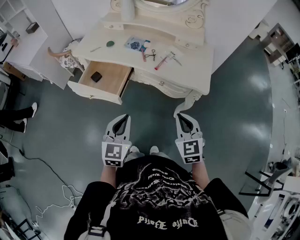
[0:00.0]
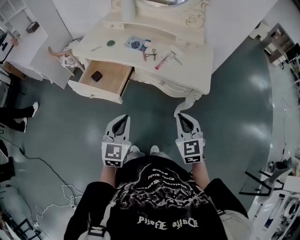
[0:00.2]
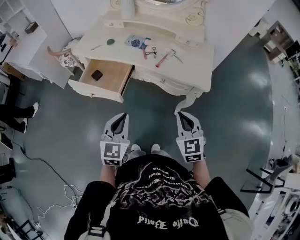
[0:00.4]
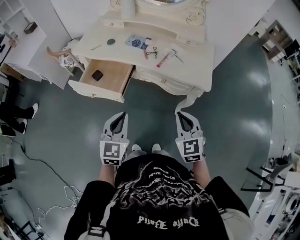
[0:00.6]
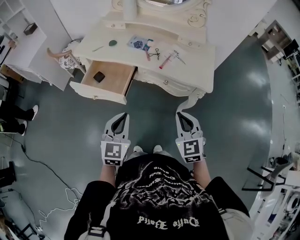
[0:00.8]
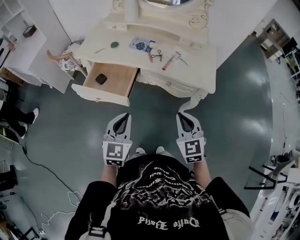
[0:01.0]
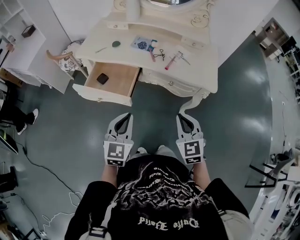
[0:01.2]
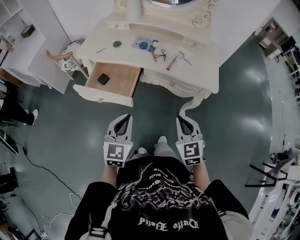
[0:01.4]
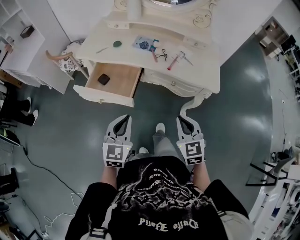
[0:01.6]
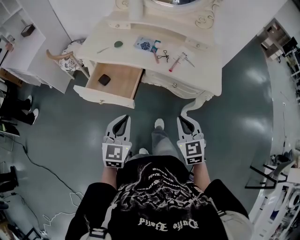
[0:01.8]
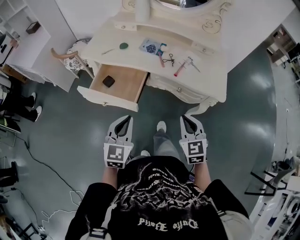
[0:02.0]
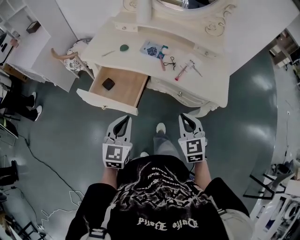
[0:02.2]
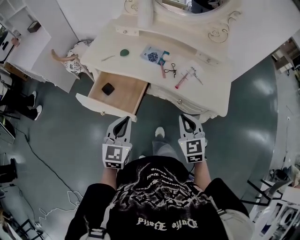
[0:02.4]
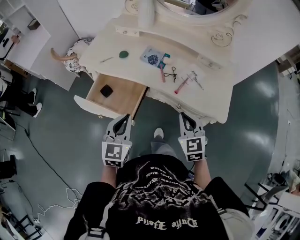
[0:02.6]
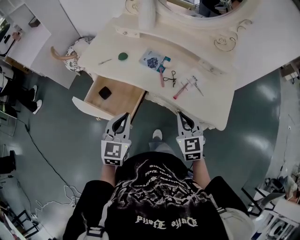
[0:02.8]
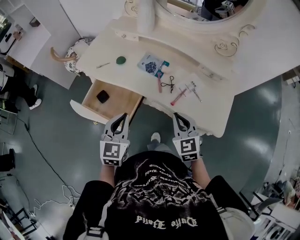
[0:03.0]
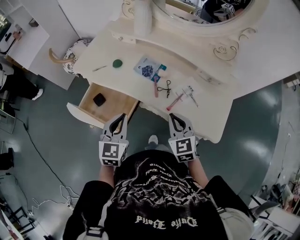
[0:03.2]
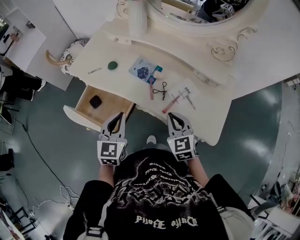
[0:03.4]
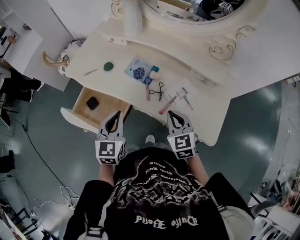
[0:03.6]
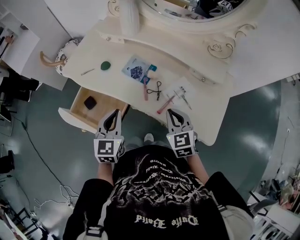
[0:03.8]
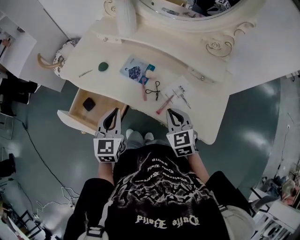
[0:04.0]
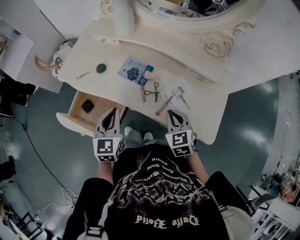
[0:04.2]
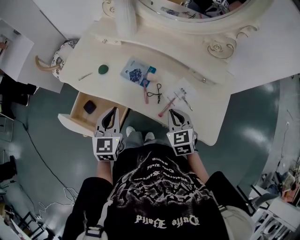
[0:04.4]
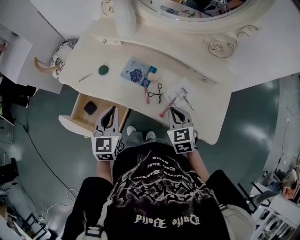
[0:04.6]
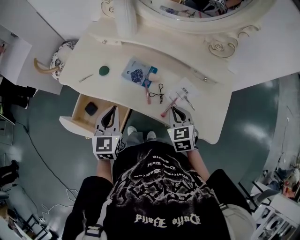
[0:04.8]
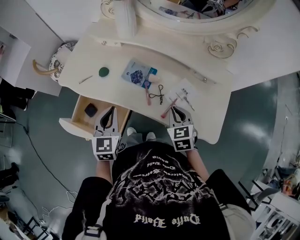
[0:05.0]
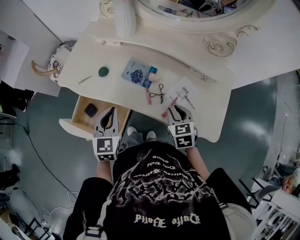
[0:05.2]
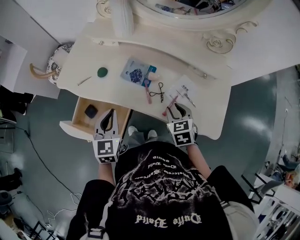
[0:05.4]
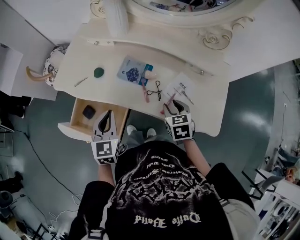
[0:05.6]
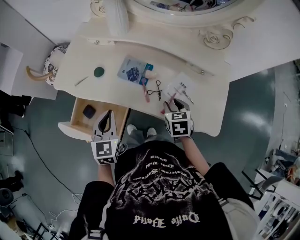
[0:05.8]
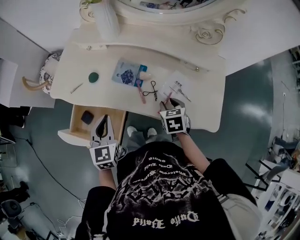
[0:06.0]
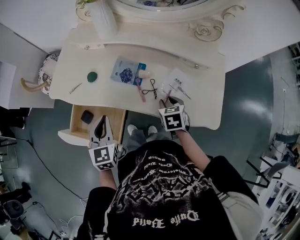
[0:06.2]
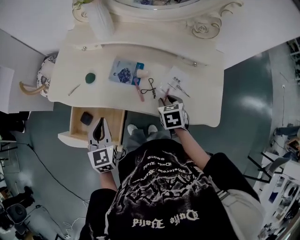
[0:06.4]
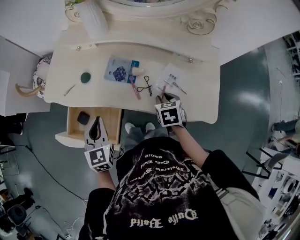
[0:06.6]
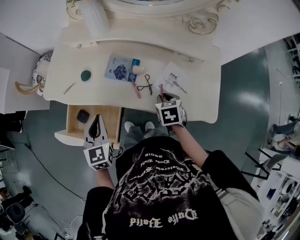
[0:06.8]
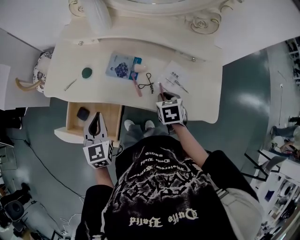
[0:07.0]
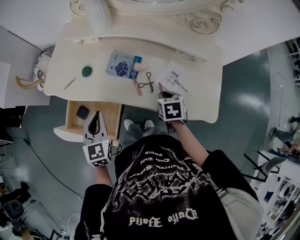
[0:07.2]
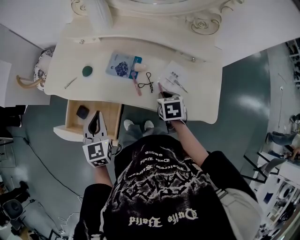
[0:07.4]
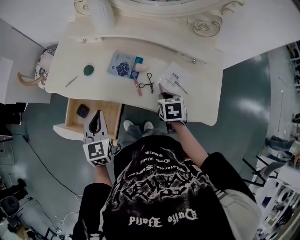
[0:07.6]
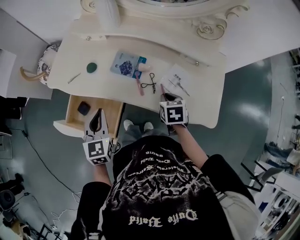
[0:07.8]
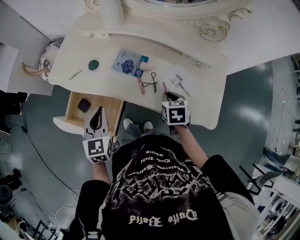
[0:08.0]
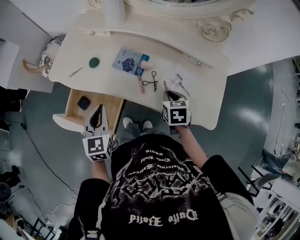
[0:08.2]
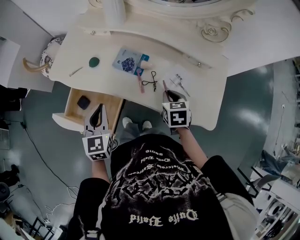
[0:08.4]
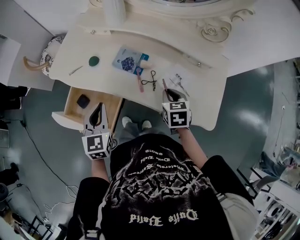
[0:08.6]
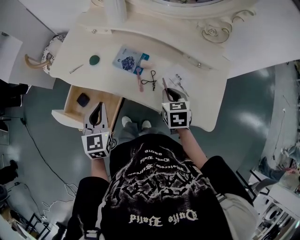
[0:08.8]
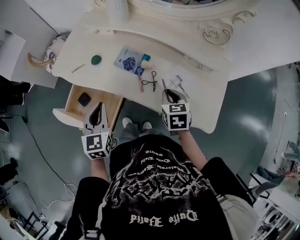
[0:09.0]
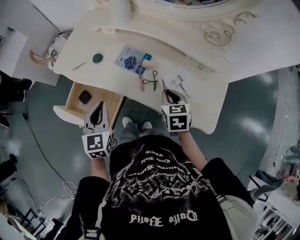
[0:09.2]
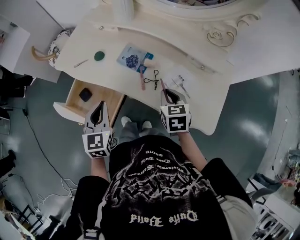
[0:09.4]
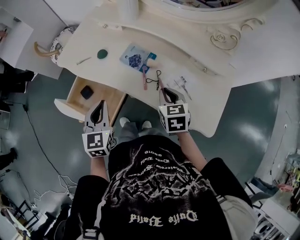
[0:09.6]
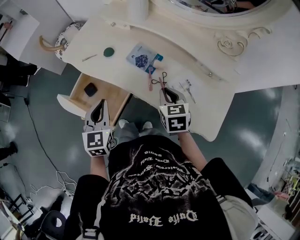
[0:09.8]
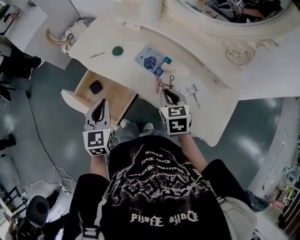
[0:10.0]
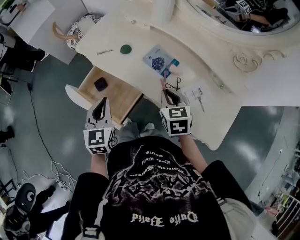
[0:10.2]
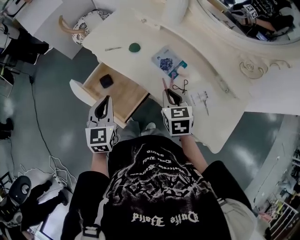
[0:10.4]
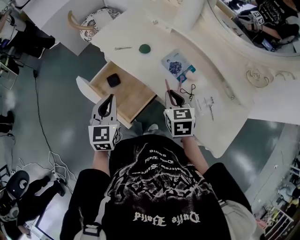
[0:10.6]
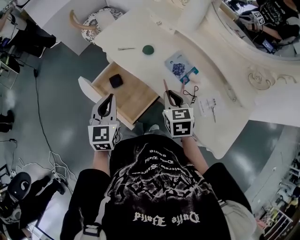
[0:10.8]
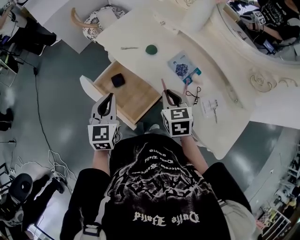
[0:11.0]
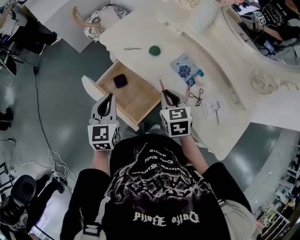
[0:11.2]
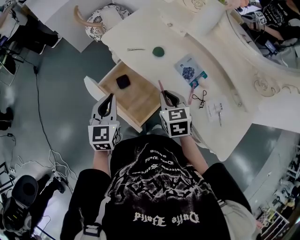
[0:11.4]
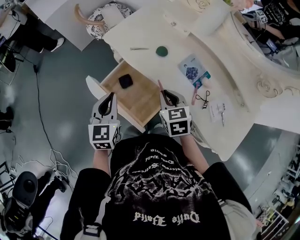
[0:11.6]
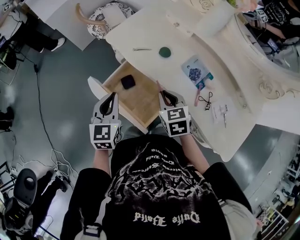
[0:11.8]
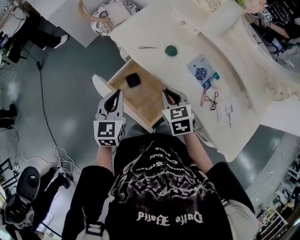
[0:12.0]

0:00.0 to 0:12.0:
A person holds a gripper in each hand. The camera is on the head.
0:00.0 to 0:01.6: The grippers both shift to the left by about 10 cm.
0:01.6 to 0:03.0: Both grippers move forward, approximately 20 cm.
0:03.0 to 0:04.4: The left gripper travels forward by some 10 cm, while the right gripper is displaced forward and to the right by approximately 10 cm.
0:04.4 to 0:06.0: The right gripper ends up some 5 cm from where it was, changes its angle by about 30 degrees, and opens its fingers.
0:06.0 to 0:07.6: The right gripper closes its fingers.
0:07.6 to 0:09.0: The right gripper shifts approximately 5 cm upward.
0:09.0 to 0:10.4: The two grippers go roughly 10 cm to the left. The right gripper rotates some 20 degrees.
0:10.4 to 0:12.0: The left gripper goes about 10 cm to the left and forward; the right gripper travels to the left by roughly 15 cm.

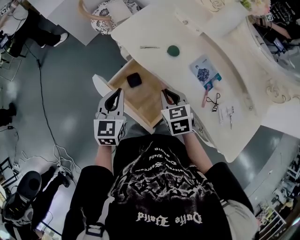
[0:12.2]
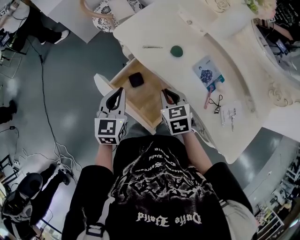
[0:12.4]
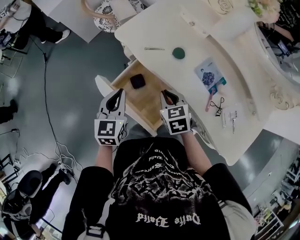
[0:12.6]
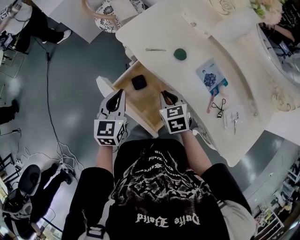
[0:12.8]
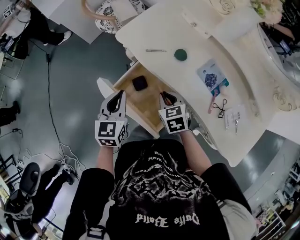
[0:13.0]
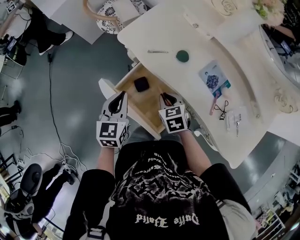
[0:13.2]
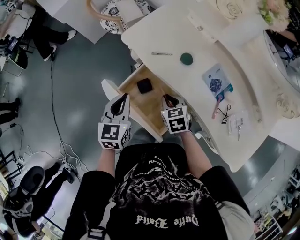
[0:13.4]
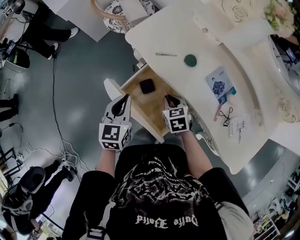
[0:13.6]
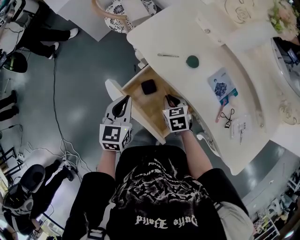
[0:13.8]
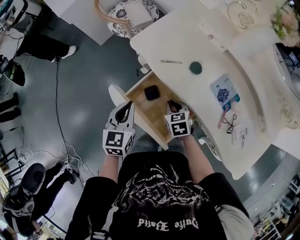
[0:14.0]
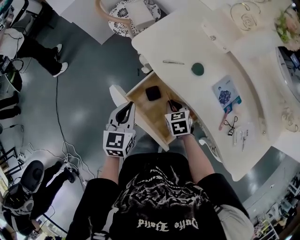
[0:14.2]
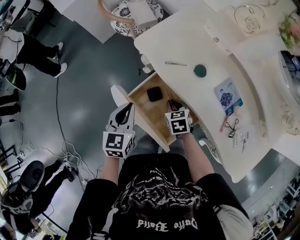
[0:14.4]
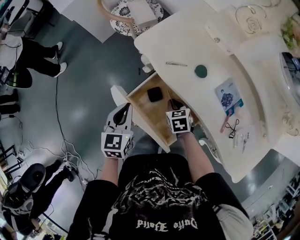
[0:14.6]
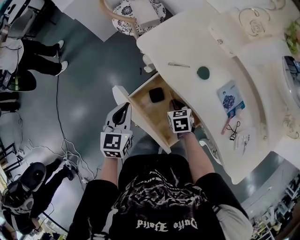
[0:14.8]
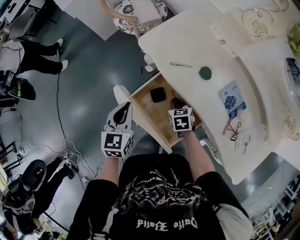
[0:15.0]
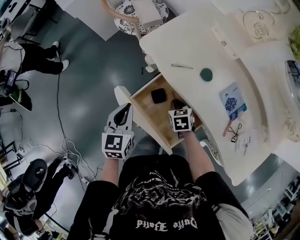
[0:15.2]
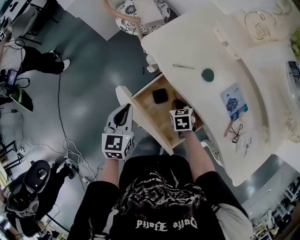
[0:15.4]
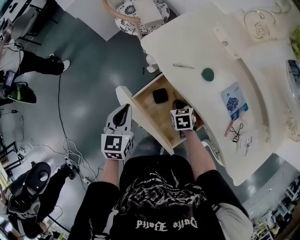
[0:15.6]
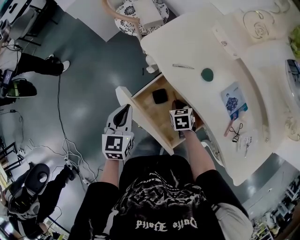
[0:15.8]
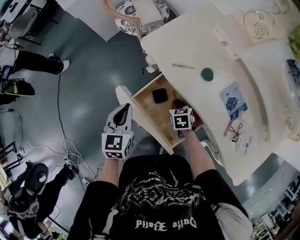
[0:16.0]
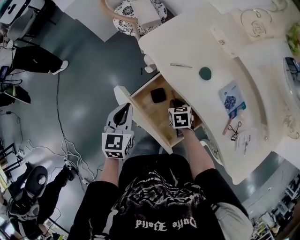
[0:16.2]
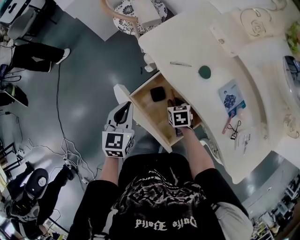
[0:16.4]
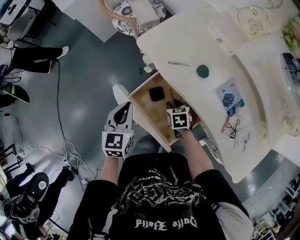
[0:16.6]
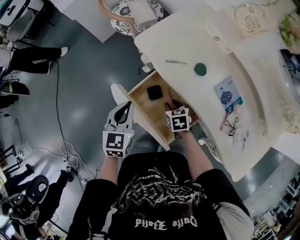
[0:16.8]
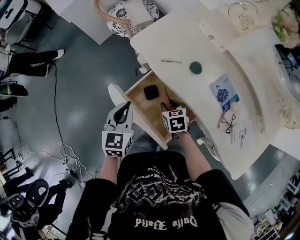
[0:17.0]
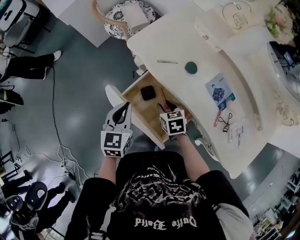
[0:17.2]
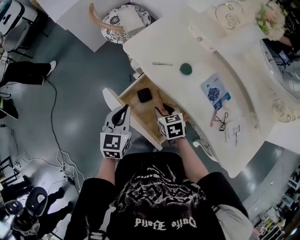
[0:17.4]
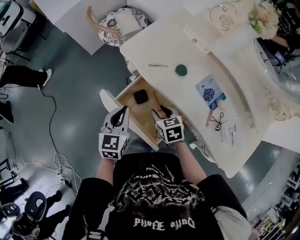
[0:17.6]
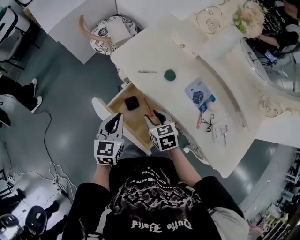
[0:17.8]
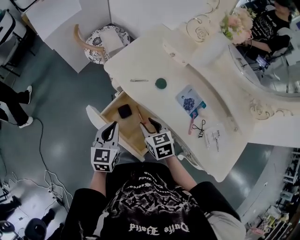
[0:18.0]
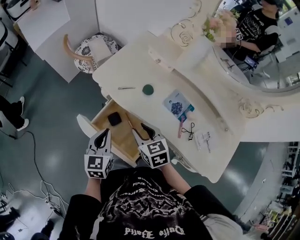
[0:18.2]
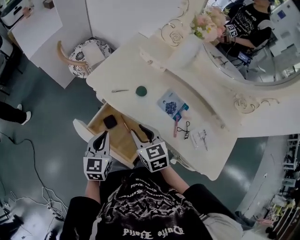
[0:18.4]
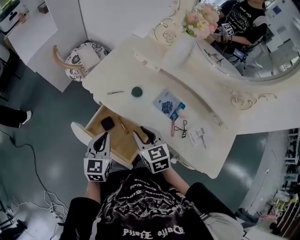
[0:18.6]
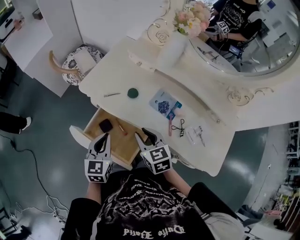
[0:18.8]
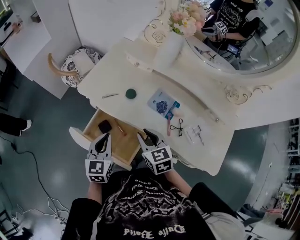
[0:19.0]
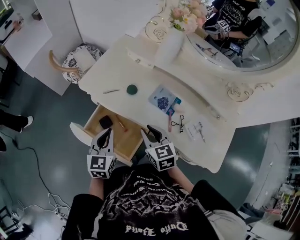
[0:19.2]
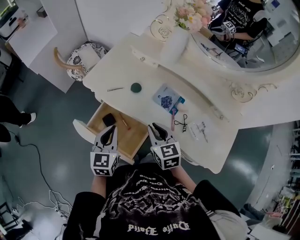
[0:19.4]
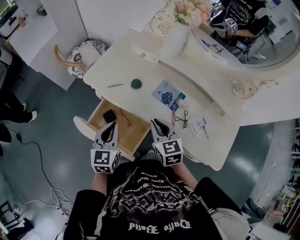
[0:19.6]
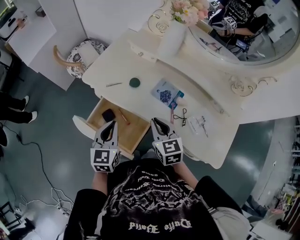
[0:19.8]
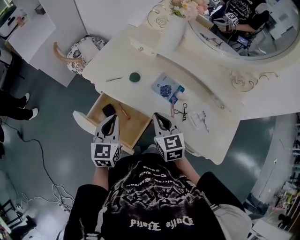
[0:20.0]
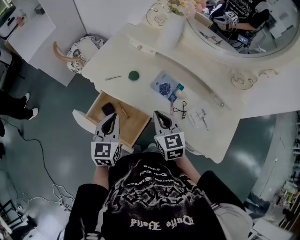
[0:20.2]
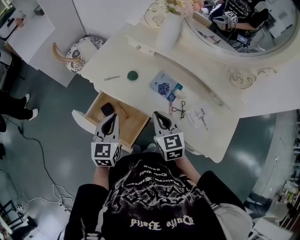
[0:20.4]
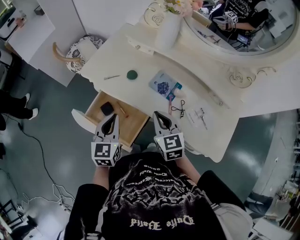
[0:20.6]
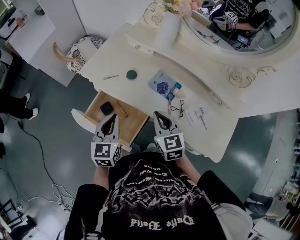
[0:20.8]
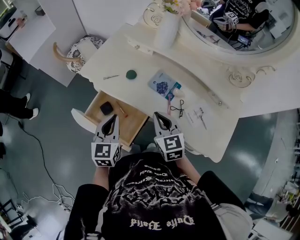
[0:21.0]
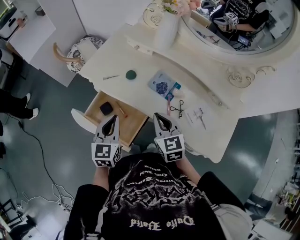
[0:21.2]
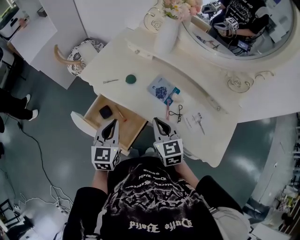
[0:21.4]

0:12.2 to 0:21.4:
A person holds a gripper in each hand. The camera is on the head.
0:12.2 to 0:13.8: The right gripper travels downward by about 10 cm.
0:13.8 to 0:15.2: The right gripper moves downward, approximately 5 cm.
0:15.2 to 0:16.8: The right gripper opens up.
0:16.8 to 0:18.4: The left gripper is displaced to the right by approximately 10 cm, while the right gripper shifts about 20 cm upward, and swivels about 30 degrees.
0:18.4 to 0:19.8: The right gripper heads to the right, covering some 10 cm, and closes, while the left gripper travels to the right by roughly 5 cm.
0:19.8 to 0:21.4: The grippers stay close to where they were, moving slightly.

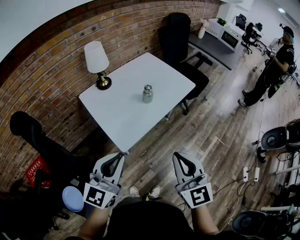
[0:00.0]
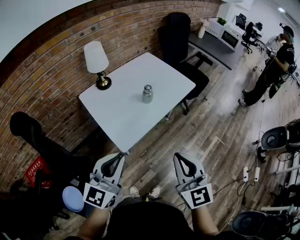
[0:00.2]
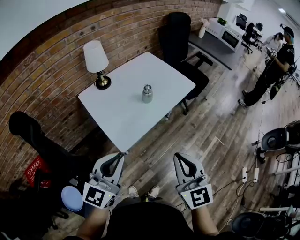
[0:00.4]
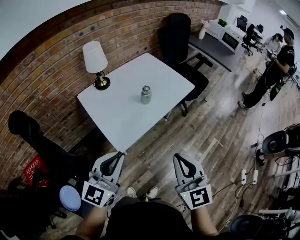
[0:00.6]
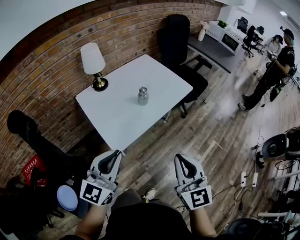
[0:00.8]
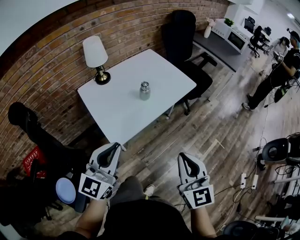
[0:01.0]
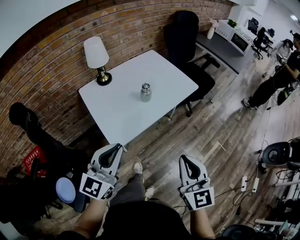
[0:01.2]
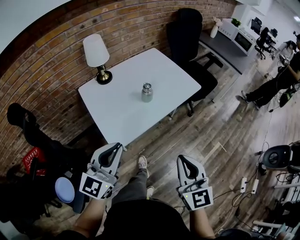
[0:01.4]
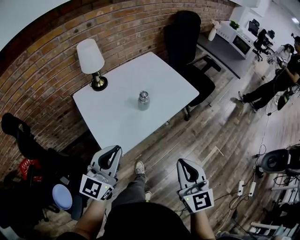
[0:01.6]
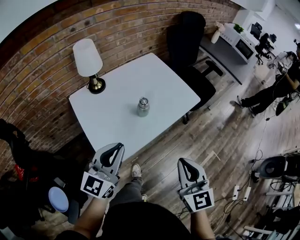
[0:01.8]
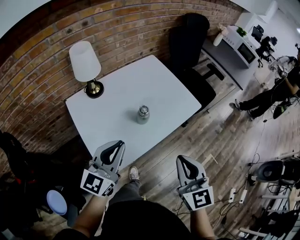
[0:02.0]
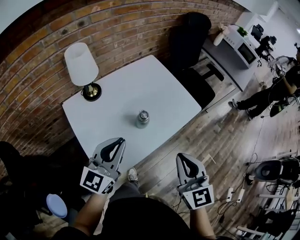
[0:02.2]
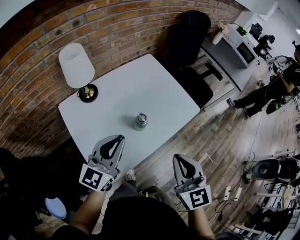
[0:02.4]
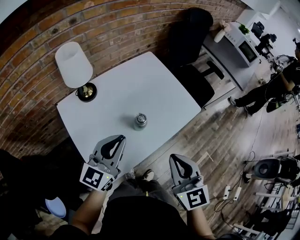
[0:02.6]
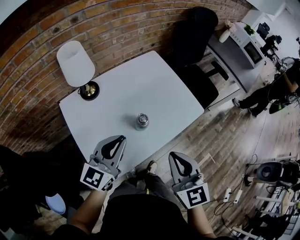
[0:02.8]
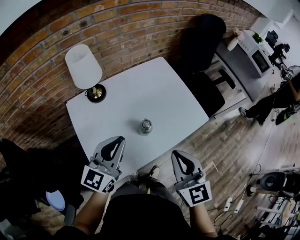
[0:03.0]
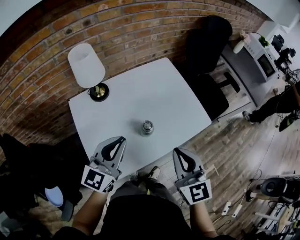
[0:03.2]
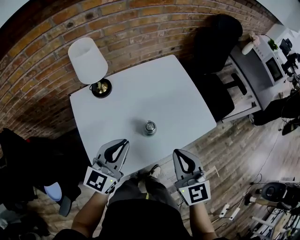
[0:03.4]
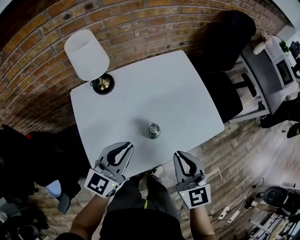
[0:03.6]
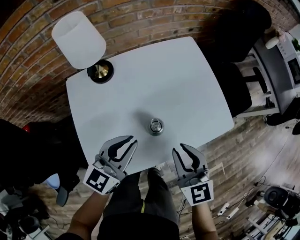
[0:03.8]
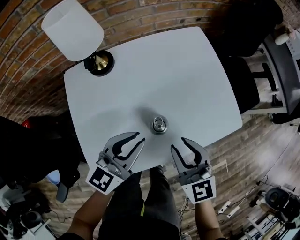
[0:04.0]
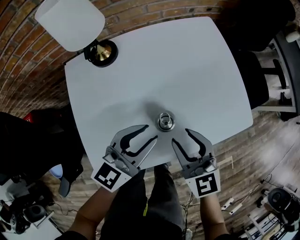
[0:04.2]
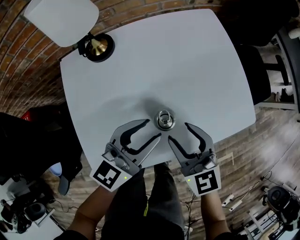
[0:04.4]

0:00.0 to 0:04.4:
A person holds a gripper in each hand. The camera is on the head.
0:00.0 to 0:01.4: The right gripper is displaced to the right and forward by about 10 cm, while the left gripper goes some 5 cm forward.
0:01.4 to 0:03.0: The grippers both shift forward by about 30 cm.
0:03.0 to 0:04.4: The right gripper goes approximately 25 cm downward and forward, turns by roughly 20 degrees, and opens up. Meanwhile the left gripper moves downward, forward and to the right, roughly 20 cm, and opens.
